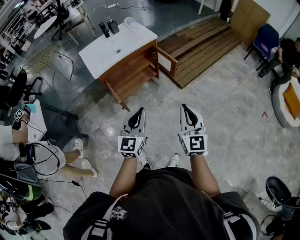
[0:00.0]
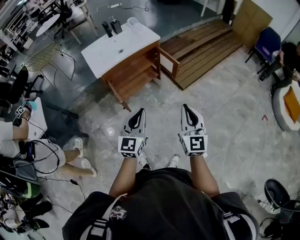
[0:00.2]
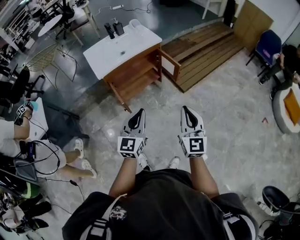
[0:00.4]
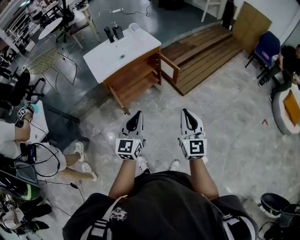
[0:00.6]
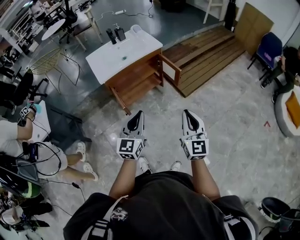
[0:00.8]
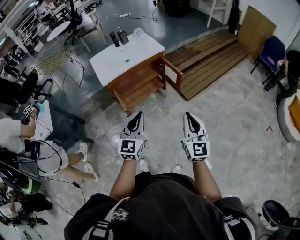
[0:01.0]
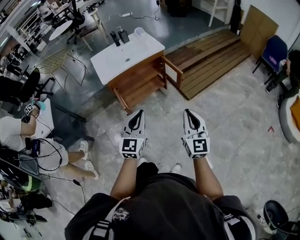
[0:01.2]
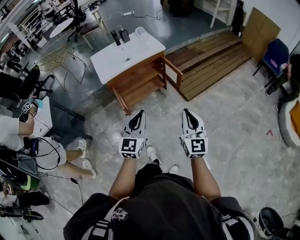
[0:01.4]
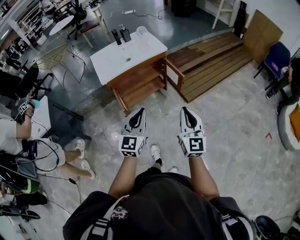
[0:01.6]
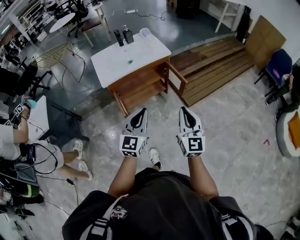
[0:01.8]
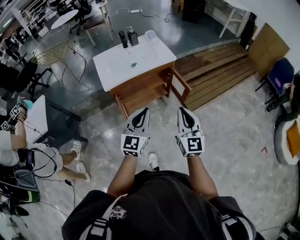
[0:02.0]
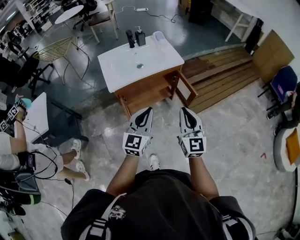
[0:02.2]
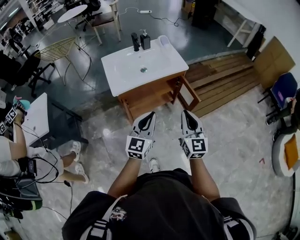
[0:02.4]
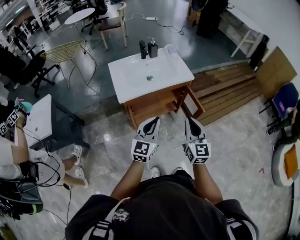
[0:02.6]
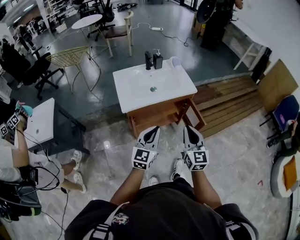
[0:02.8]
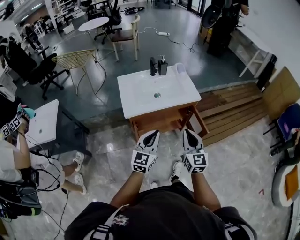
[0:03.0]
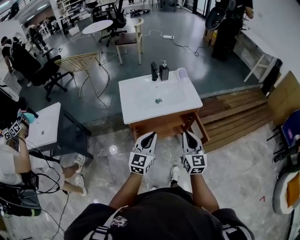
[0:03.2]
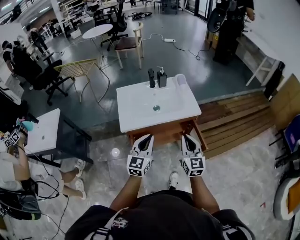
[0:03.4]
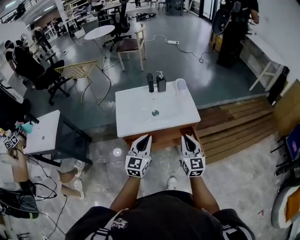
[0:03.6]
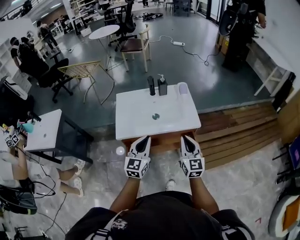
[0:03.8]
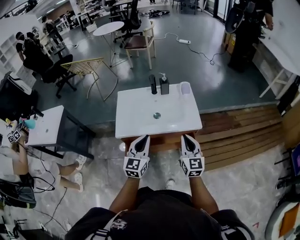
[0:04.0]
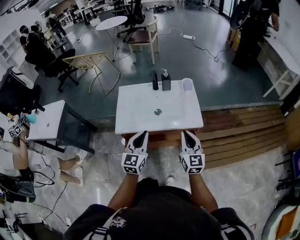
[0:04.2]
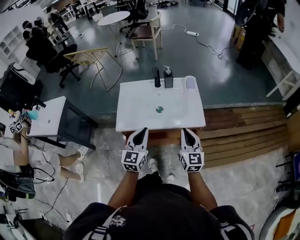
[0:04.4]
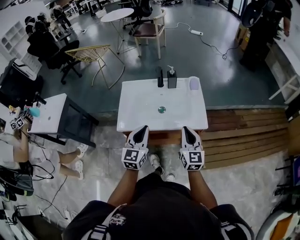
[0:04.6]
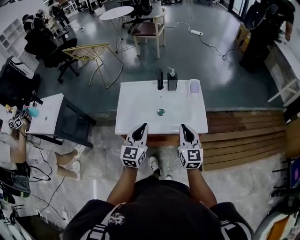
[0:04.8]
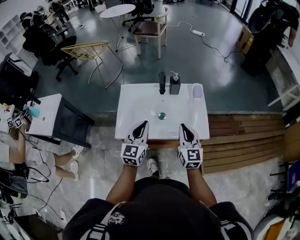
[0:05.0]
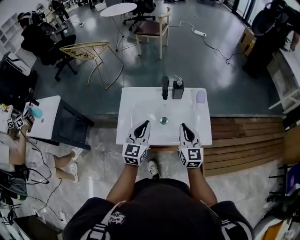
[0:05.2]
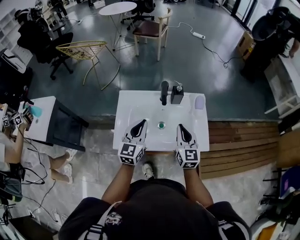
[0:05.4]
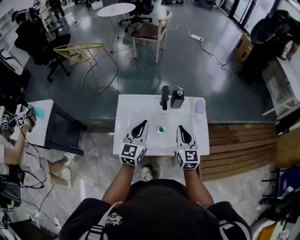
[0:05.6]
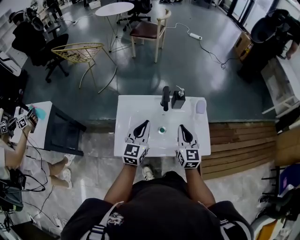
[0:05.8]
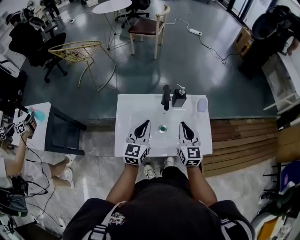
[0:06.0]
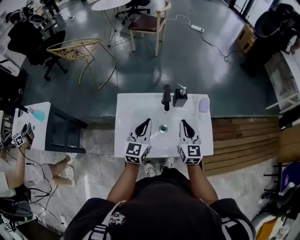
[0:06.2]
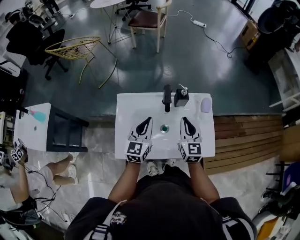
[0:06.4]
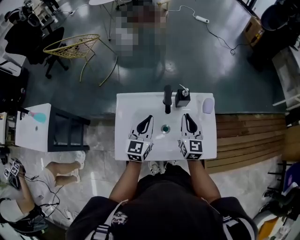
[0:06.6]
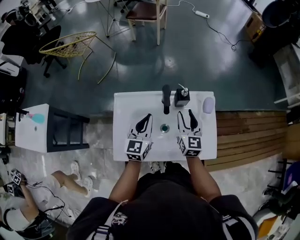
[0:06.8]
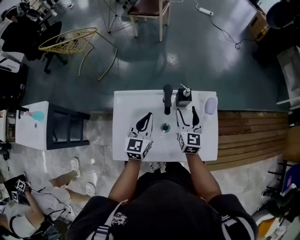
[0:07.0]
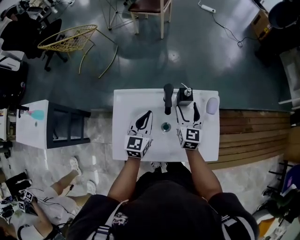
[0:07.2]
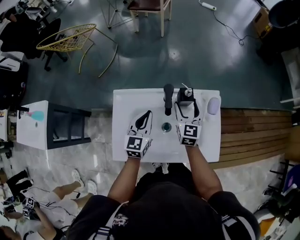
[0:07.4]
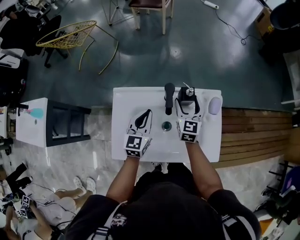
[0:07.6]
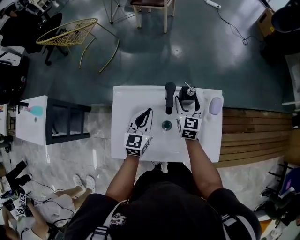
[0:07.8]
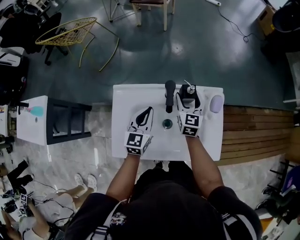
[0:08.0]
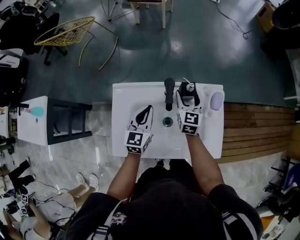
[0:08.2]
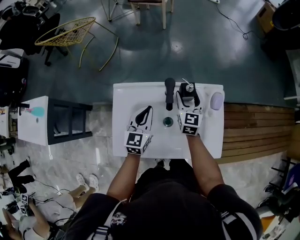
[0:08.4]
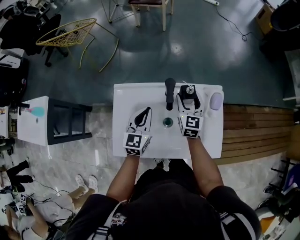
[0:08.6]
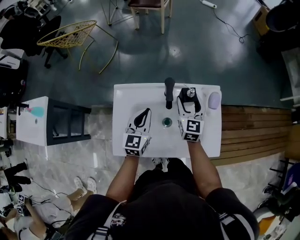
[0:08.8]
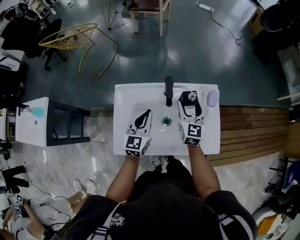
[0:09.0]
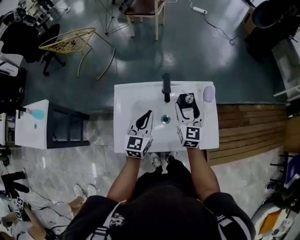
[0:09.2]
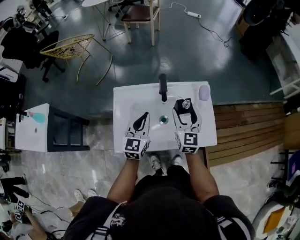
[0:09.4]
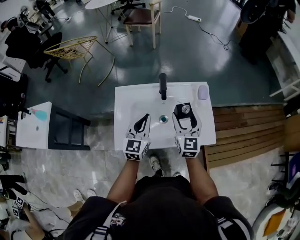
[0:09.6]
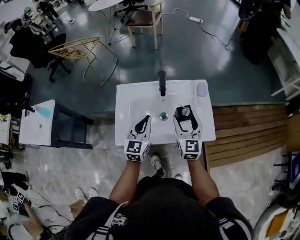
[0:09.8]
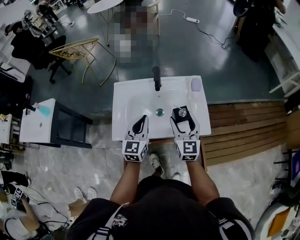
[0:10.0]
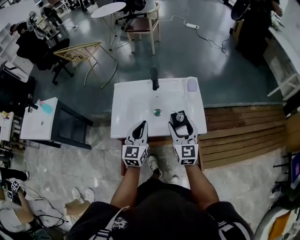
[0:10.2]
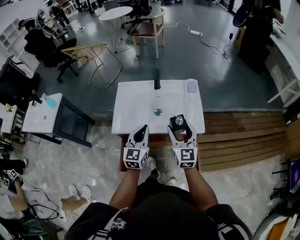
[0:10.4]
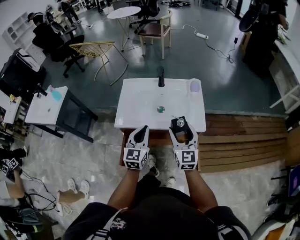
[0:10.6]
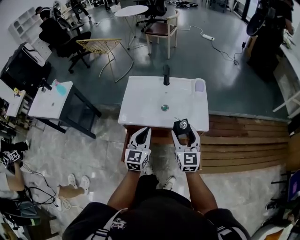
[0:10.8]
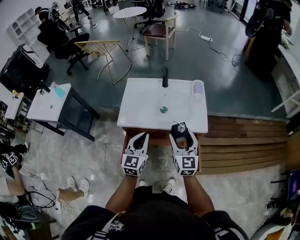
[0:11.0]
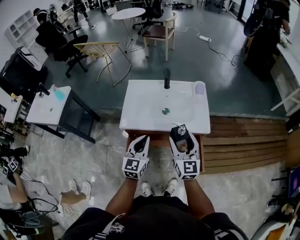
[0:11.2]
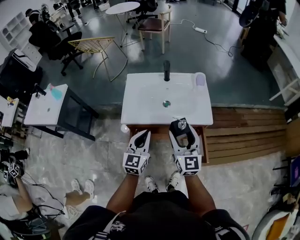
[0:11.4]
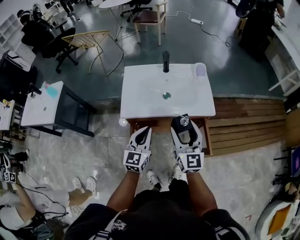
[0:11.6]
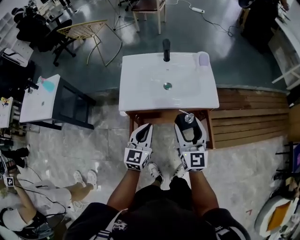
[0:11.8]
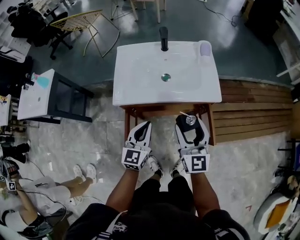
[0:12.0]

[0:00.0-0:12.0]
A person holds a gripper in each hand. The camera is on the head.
0:00.0 to 0:01.6: Both grippers travel together forward, about 5 cm.
0:01.6 to 0:03.0: Both grippers move forward and to the left, about 25 cm.
0:03.0 to 0:04.4: The right gripper moves forward and to the right, roughly 25 cm. Meanwhile the left gripper heads forward, covering roughly 20 cm, and swivels roughly 20 degrees.
0:04.4 to 0:06.0: The two grippers go approximately 25 cm forward.
0:06.0 to 0:07.6: The right gripper moves forward and downward, about 20 cm, and opens its fingers. Meanwhile the left gripper shifts roughly 15 cm forward and downward.
0:07.6 to 0:09.0: The left gripper shifts by approximately 5 cm; the right gripper heads backward, covering roughly 5 cm.
0:09.0 to 0:10.4: The grippers both shift backward by some 25 cm.
0:10.4 to 0:12.0: The left gripper shifts roughly 15 cm backward and downward. The right gripper heads backward, covering roughly 10 cm.

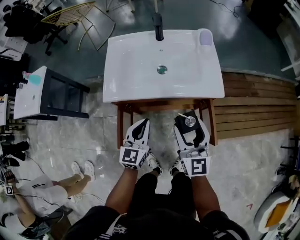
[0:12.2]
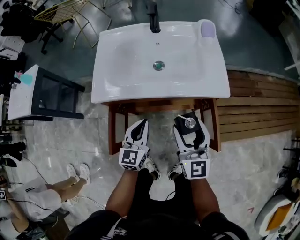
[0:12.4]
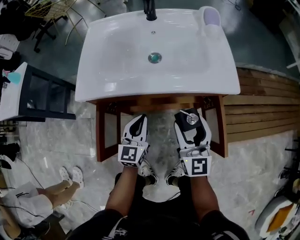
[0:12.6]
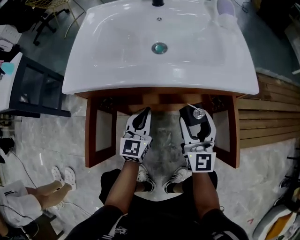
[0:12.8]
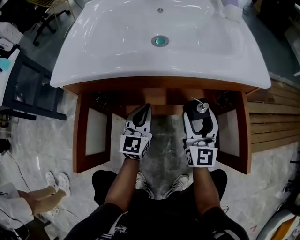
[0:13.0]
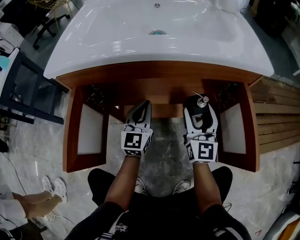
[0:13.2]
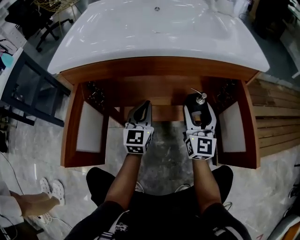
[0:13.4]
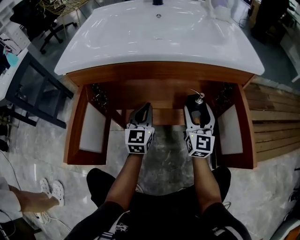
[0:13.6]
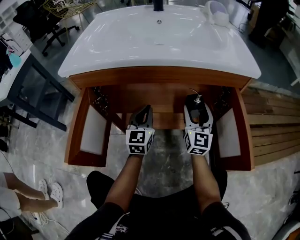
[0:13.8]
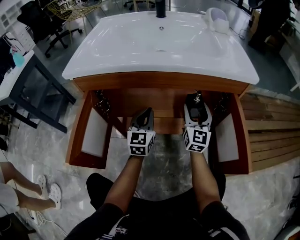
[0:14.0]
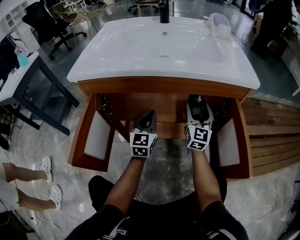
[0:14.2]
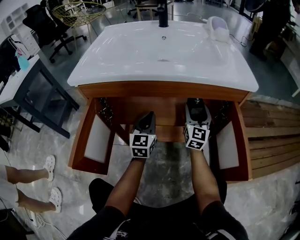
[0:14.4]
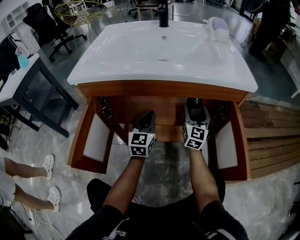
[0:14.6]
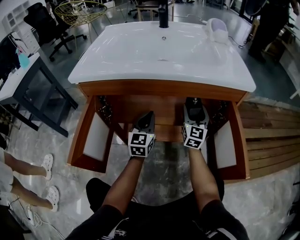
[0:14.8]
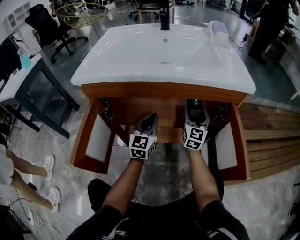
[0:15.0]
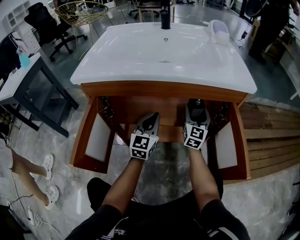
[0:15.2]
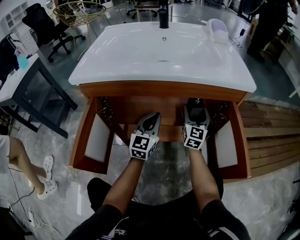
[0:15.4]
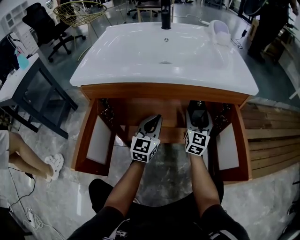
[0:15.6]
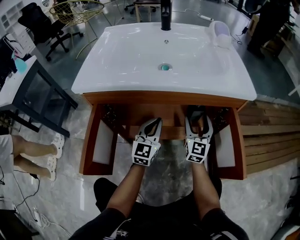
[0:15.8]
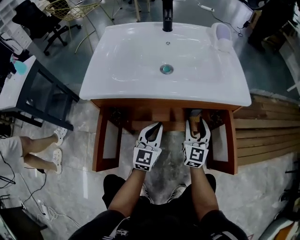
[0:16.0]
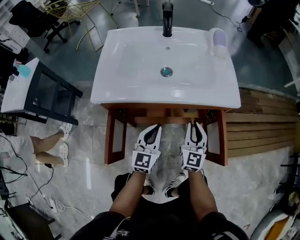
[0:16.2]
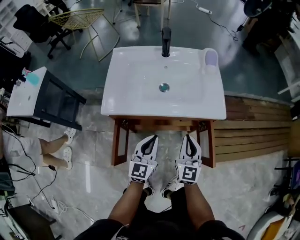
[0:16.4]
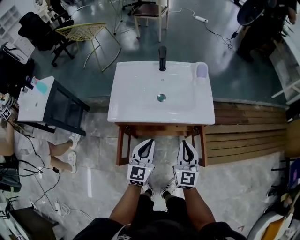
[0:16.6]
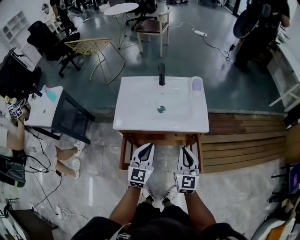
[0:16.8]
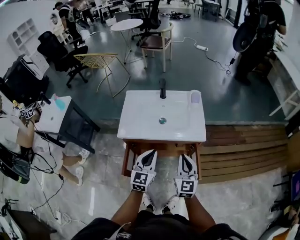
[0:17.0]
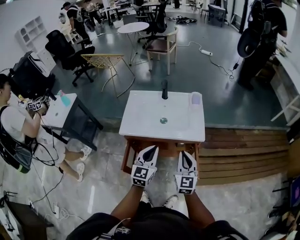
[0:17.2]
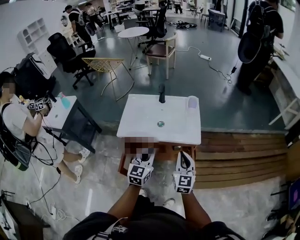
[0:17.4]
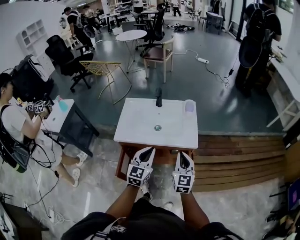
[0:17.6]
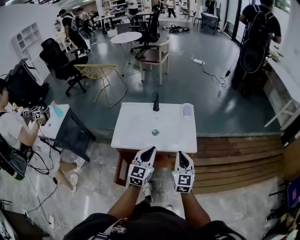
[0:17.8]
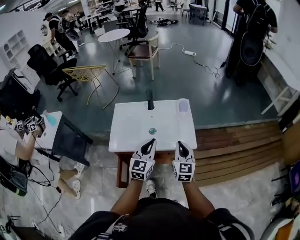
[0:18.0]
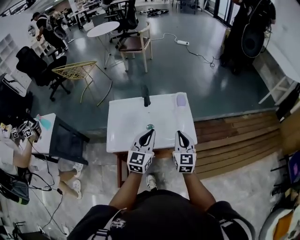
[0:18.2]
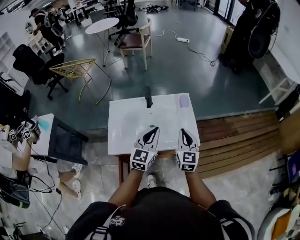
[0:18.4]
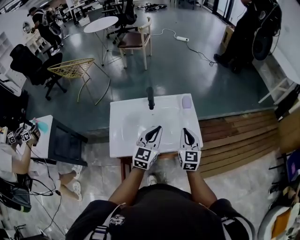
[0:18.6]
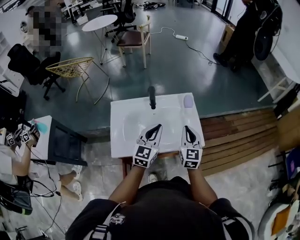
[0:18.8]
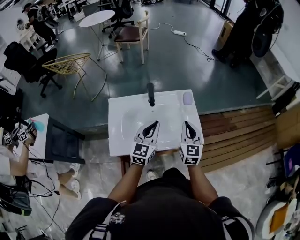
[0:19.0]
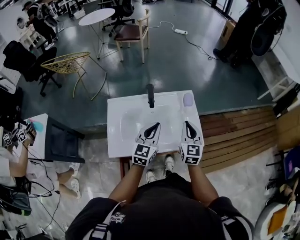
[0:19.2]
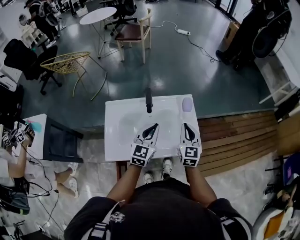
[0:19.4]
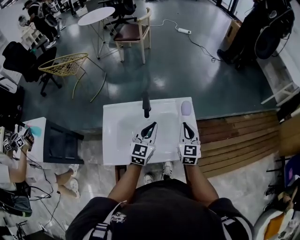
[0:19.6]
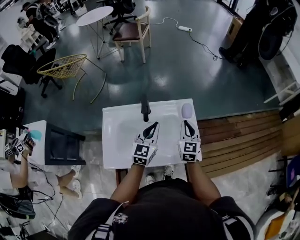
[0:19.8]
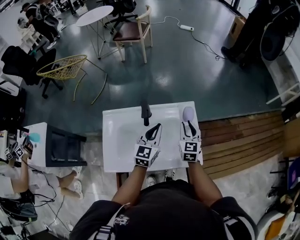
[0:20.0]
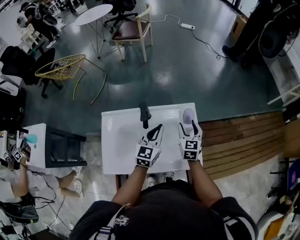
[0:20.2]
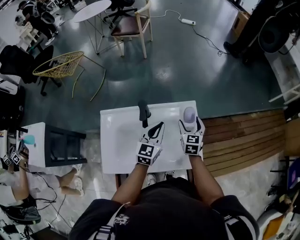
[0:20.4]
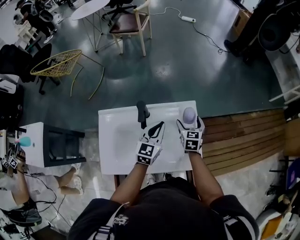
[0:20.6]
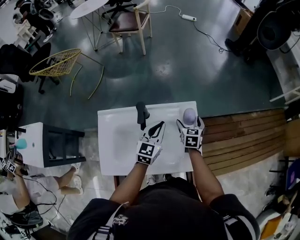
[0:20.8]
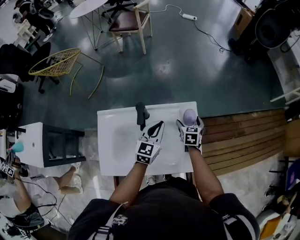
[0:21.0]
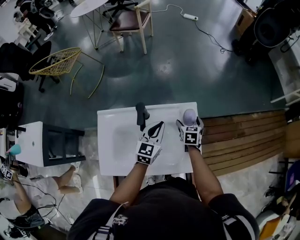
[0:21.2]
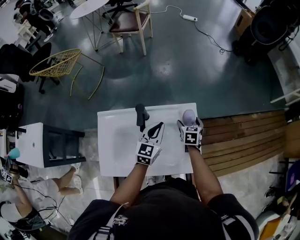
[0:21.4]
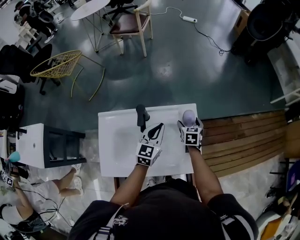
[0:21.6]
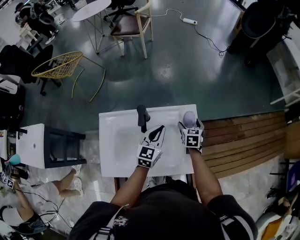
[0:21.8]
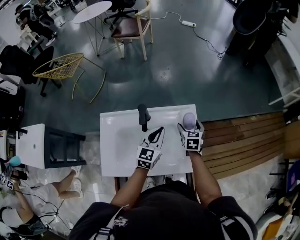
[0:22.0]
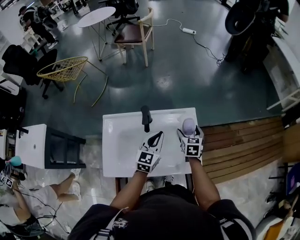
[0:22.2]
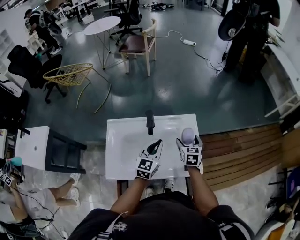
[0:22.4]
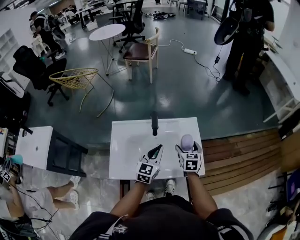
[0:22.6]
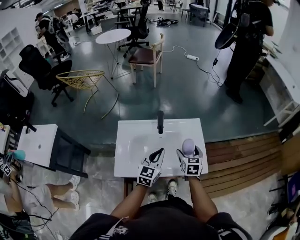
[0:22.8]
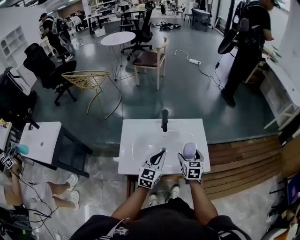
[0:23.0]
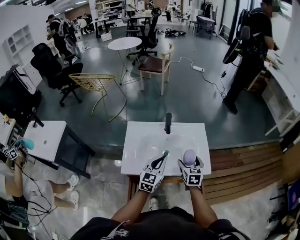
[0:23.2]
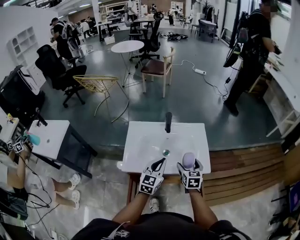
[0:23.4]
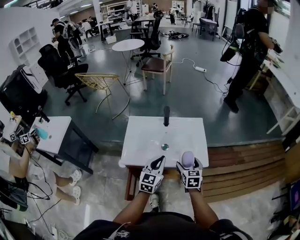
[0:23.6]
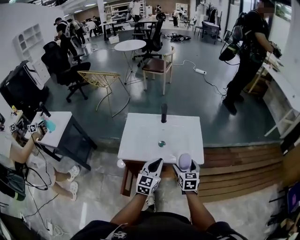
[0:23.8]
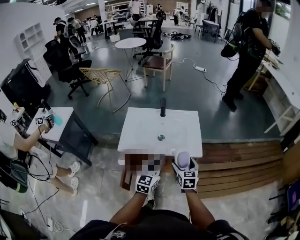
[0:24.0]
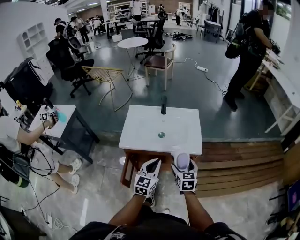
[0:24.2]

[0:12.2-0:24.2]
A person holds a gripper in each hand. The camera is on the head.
0:12.2 to 0:13.8: The grippers both shift downward by some 35 cm.
0:13.8 to 0:15.2: The right gripper travels forward by some 5 cm.
0:15.2 to 0:16.6: The right gripper goes approximately 40 cm upward and backward, and closes, while the left gripper shifts roughly 35 cm upward.
0:16.6 to 0:18.2: The left gripper heads upward, forward and to the right, covering some 20 cm, while the right gripper heads forward and upward, covering about 20 cm.
0:18.2 to 0:19.8: The grippers both shift forward by some 20 cm.
0:19.8 to 0:21.2: The right gripper goes about 20 cm downward and forward, turns by some 30 degrees, and opens its fingers. Meanwhile the left gripper goes some 10 cm forward and downward.
0:21.2 to 0:22.6: The right gripper is displaced backward and upward by about 15 cm. Meanwhile the left gripper goes roughly 15 cm backward.
0:22.6 to 0:24.2: The grippers both shift backward by some 30 cm.
